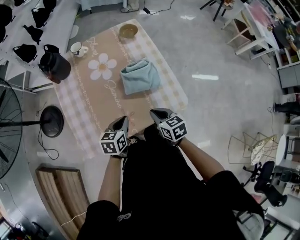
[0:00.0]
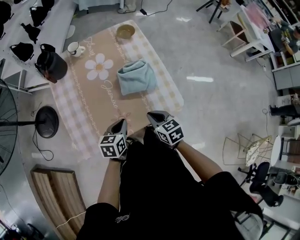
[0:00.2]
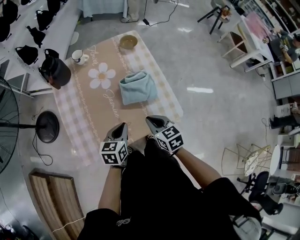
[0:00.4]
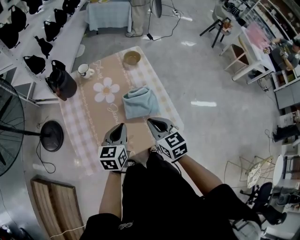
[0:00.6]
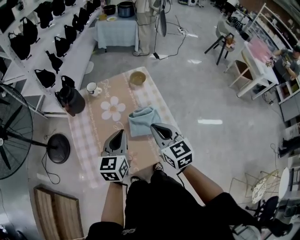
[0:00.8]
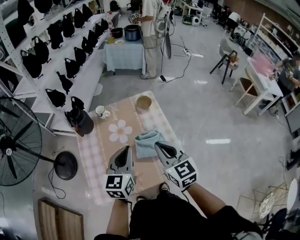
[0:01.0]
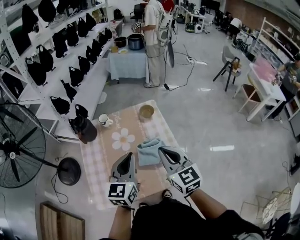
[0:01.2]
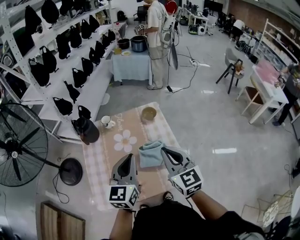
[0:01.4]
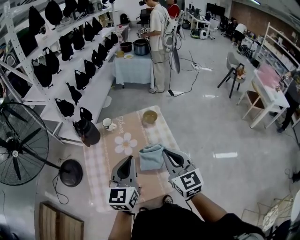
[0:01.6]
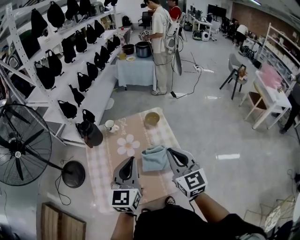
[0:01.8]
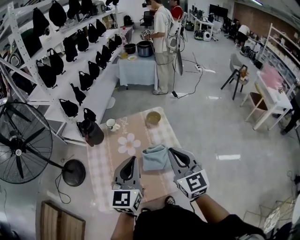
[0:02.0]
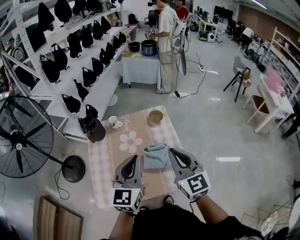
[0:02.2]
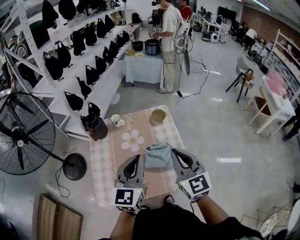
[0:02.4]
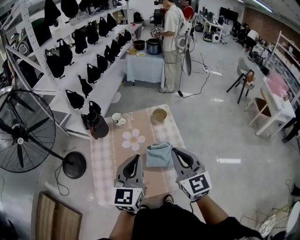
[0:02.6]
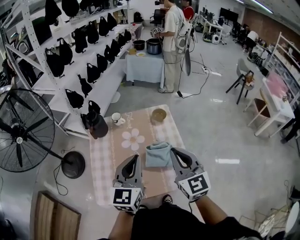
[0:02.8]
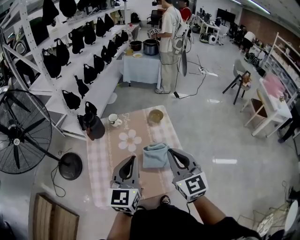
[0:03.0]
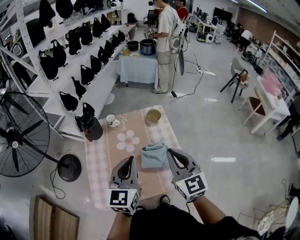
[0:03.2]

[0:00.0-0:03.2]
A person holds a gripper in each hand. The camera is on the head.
0.0 to 1.6 s: The grippers both shift upward by roughly 30 cm. The right gripper angles its fingers upward, by some 30 degrees, while the left gripper tilts its fingers some 30 degrees upward.
1.6 to 3.2 s: The grippers stay close to where they were, moving slightly.

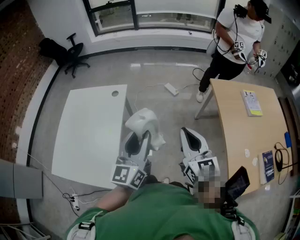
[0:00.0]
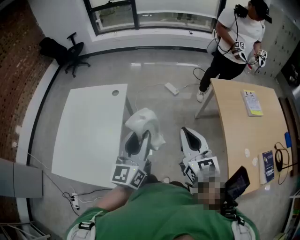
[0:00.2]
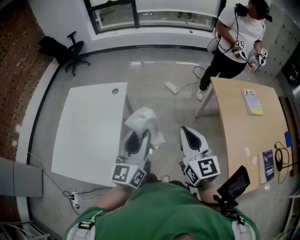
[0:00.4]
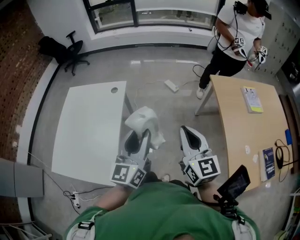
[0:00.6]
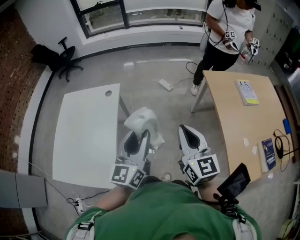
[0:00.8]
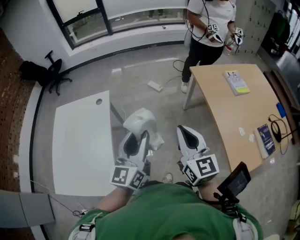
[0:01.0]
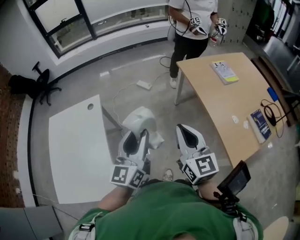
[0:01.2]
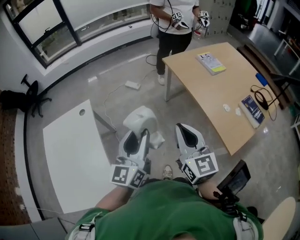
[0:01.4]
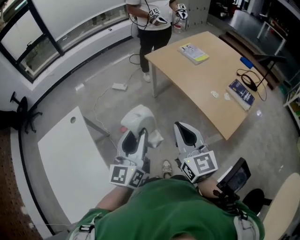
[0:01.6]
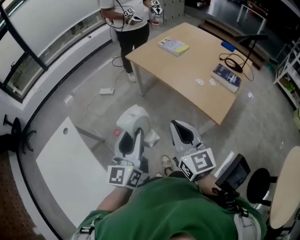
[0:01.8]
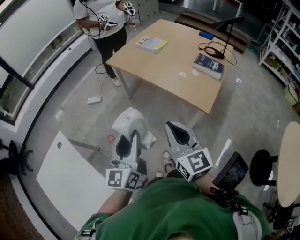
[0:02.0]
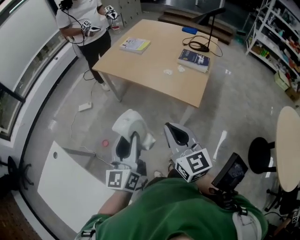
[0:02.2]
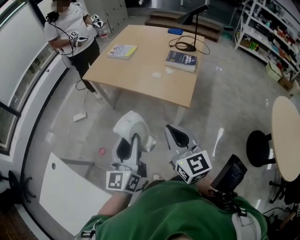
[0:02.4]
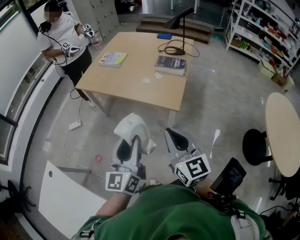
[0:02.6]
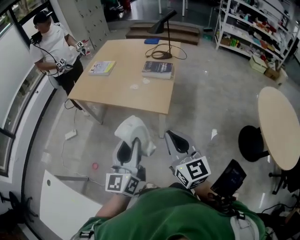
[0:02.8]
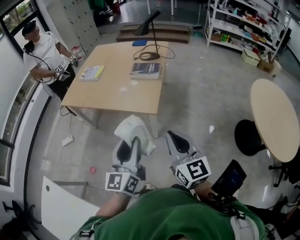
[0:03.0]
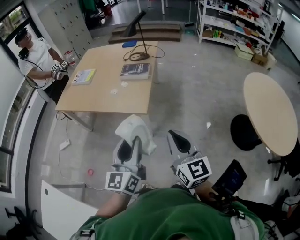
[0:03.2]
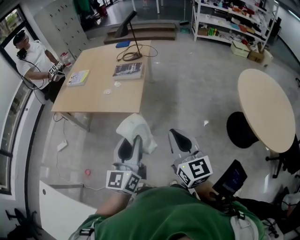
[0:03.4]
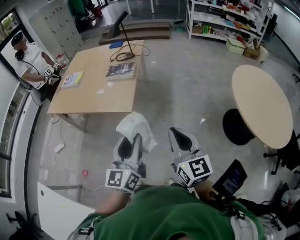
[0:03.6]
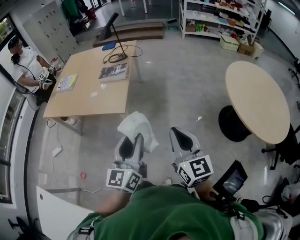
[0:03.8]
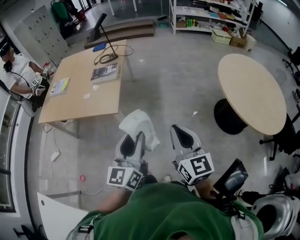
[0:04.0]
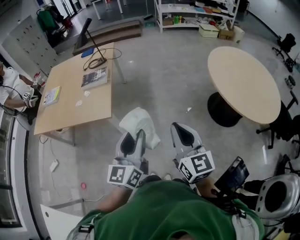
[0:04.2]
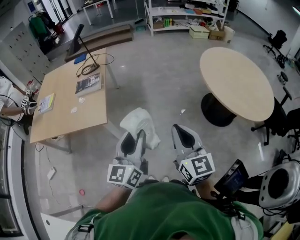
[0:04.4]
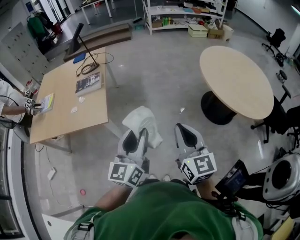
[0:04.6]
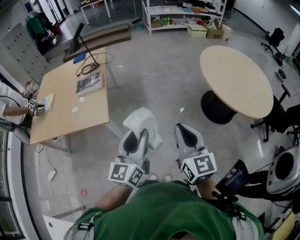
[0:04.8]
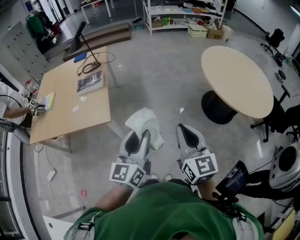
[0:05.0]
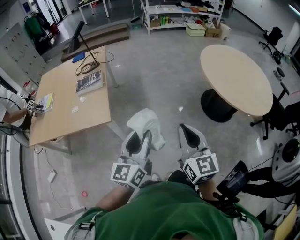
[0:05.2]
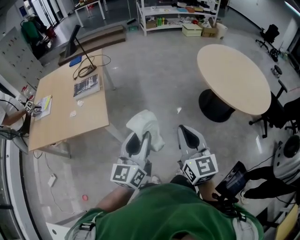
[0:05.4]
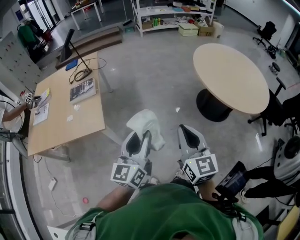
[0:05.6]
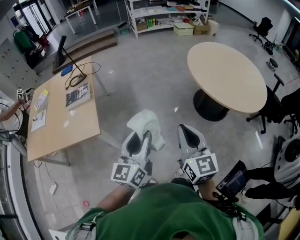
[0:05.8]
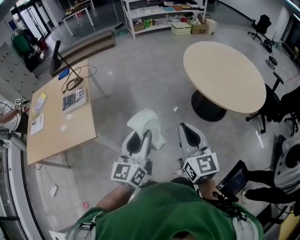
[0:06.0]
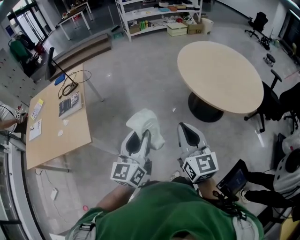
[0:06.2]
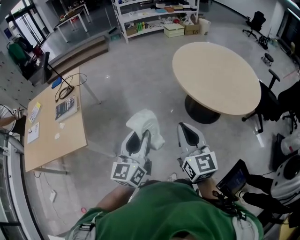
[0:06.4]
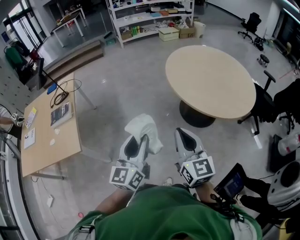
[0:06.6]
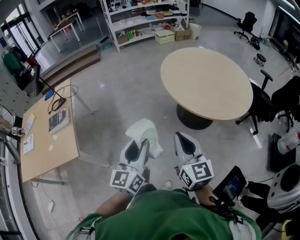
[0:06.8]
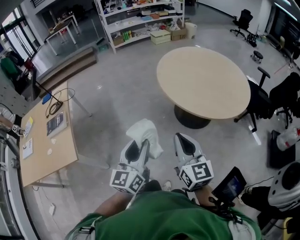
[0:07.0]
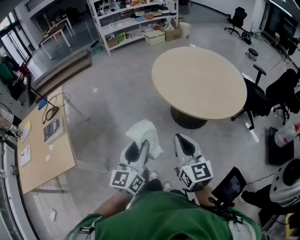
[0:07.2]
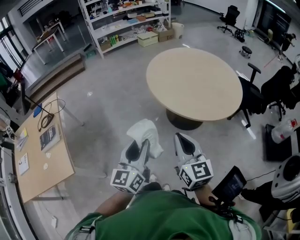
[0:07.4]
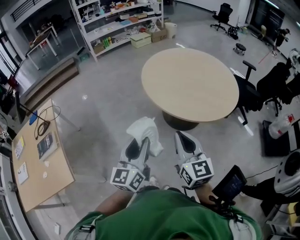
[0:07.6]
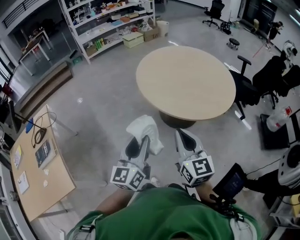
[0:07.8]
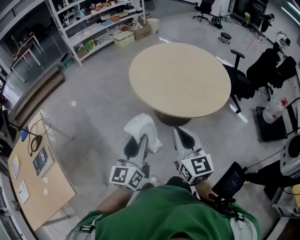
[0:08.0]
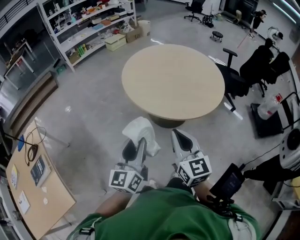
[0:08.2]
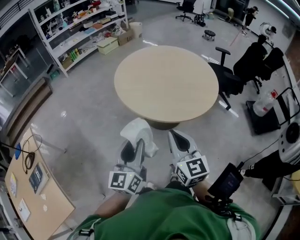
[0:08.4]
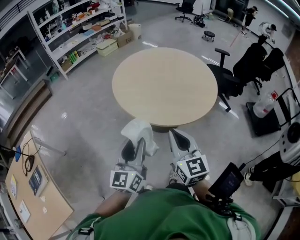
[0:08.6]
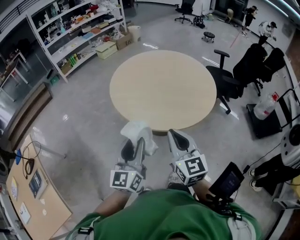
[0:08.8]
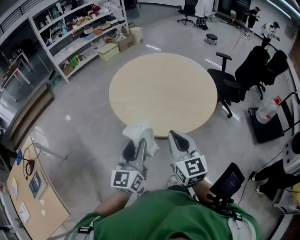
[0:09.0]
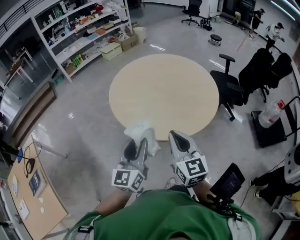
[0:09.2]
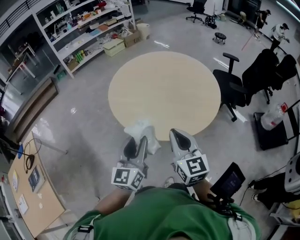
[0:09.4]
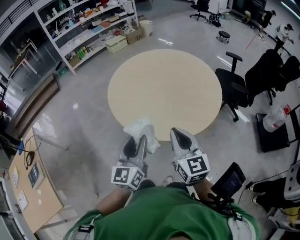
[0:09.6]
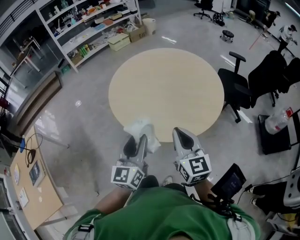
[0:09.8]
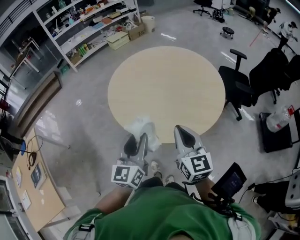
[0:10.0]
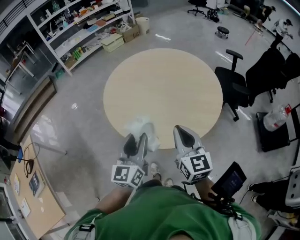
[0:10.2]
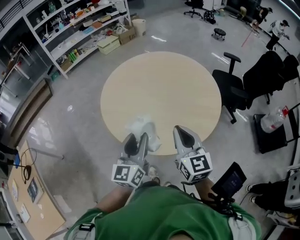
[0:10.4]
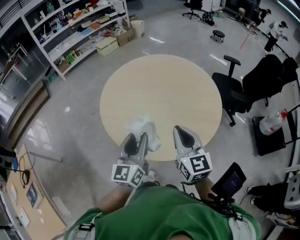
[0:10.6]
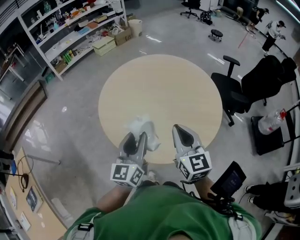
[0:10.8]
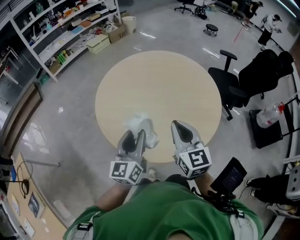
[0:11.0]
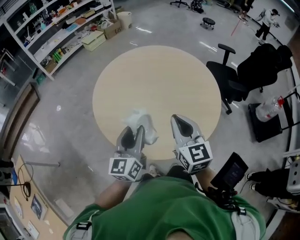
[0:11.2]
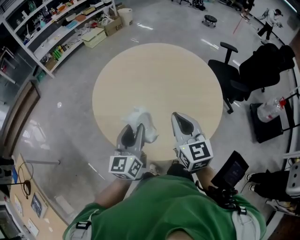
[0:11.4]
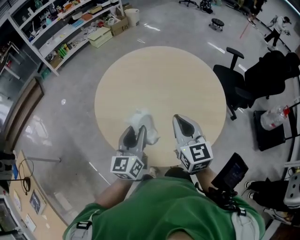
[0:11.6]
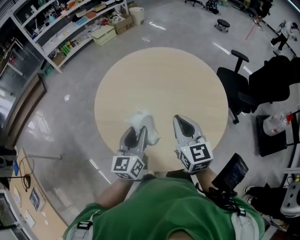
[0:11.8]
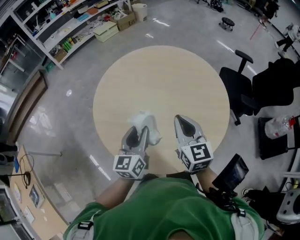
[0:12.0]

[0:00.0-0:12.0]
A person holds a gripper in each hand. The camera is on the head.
0.0 to 1.6 s: The right gripper changes place by about 15 cm, and changes its angle by approximately 30 degrees. The left gripper moves some 10 cm, and changes its angle by some 30 degrees.
1.6 to 3.0 s: The right gripper ends up about 35 cm from where it was, and changes its angle by about 40 degrees. Meanwhile the left gripper changes place by roughly 35 cm, and changes its angle by about 40 degrees.
3.0 to 4.4 s: The right gripper ends up roughly 30 cm from where it was, and rotates about 30 degrees, while the left gripper shifts by some 30 cm, and rotates approximately 30 degrees.
4.4 to 6.0 s: The right gripper travels to the right by approximately 10 cm. The left gripper travels to the right and forward by some 10 cm.
6.0 to 7.6 s: The grippers both shift to the right and forward by about 20 cm.
7.6 to 9.0 s: Both grippers travel together forward and to the right, about 20 cm.
9.0 to 10.4 s: The grippers both shift forward and to the right by roughly 20 cm.
10.4 to 12.0 s: The right gripper shifts roughly 20 cm forward, while the left gripper heads forward and downward, covering roughly 20 cm.

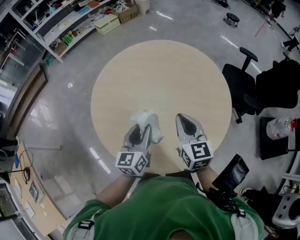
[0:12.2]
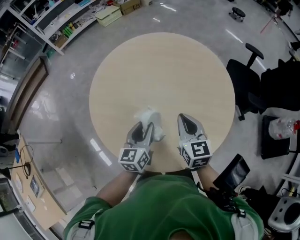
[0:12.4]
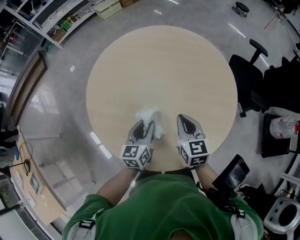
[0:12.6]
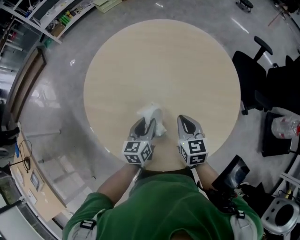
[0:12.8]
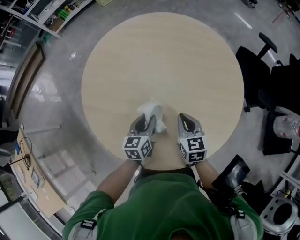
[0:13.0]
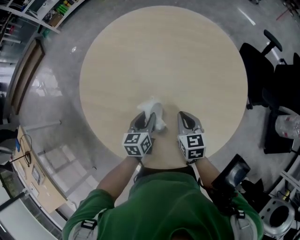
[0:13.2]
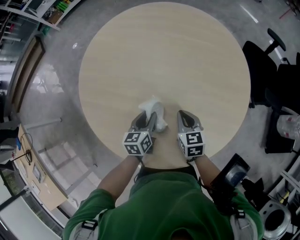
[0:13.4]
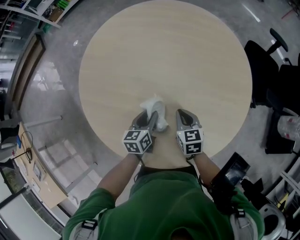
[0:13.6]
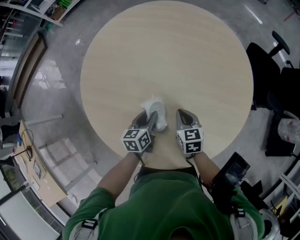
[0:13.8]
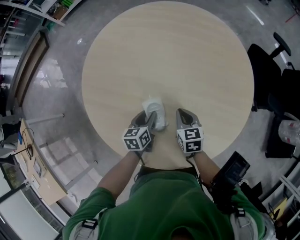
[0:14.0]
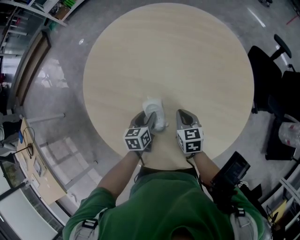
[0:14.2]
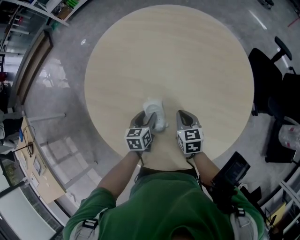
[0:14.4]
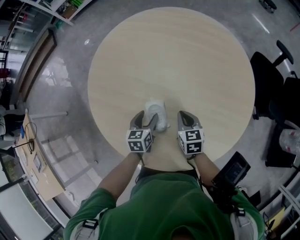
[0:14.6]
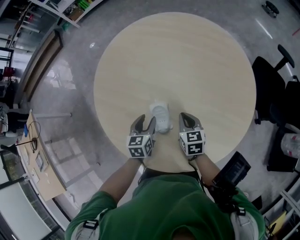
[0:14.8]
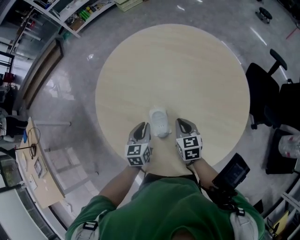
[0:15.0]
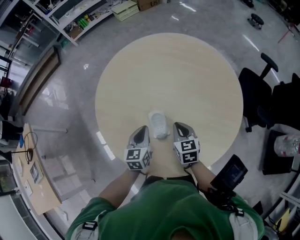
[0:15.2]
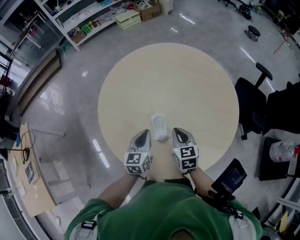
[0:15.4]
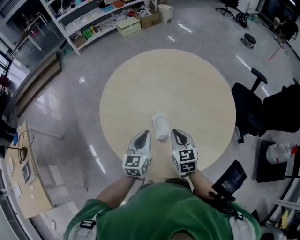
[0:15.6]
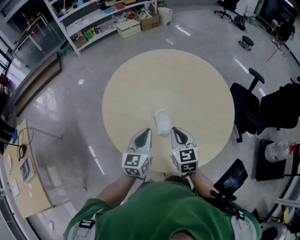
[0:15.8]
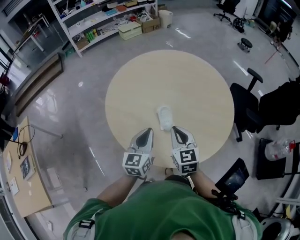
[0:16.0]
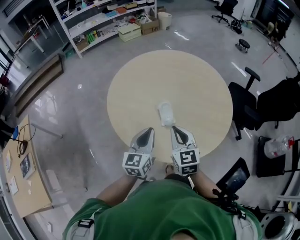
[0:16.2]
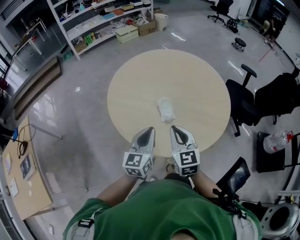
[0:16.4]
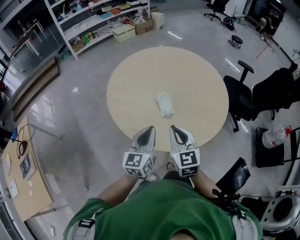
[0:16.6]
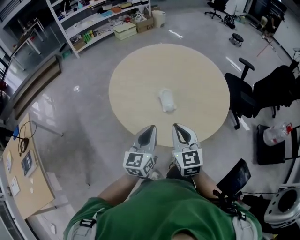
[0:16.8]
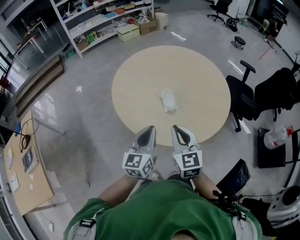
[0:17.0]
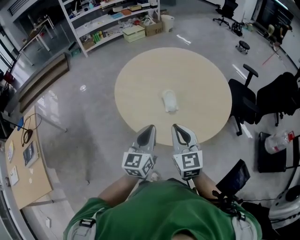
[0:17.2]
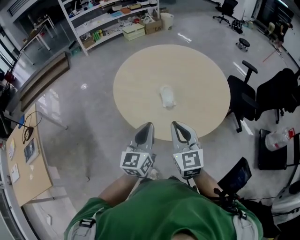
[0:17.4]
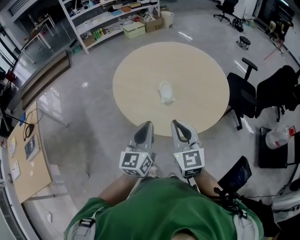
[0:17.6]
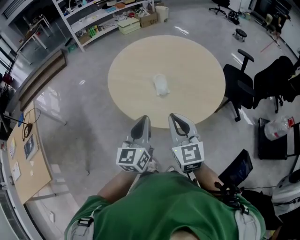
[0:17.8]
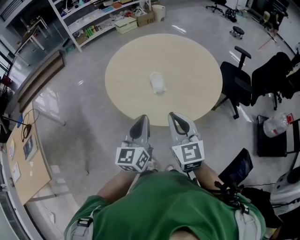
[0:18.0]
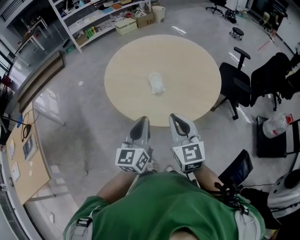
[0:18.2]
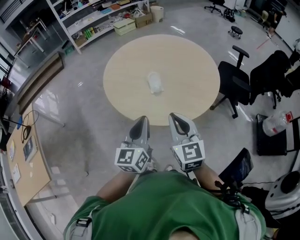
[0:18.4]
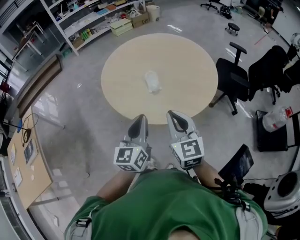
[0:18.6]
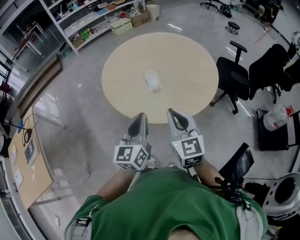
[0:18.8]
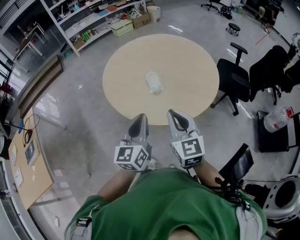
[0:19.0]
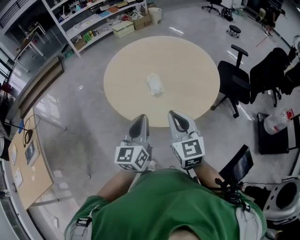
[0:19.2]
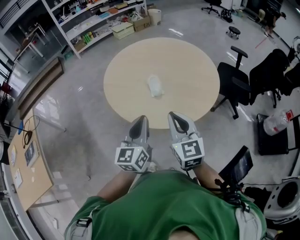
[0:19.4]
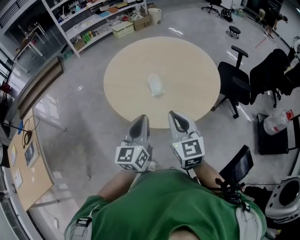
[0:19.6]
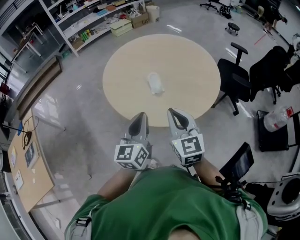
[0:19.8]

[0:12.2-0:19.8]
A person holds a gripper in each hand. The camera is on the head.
12.2 to 13.8 s: The grippers both shift downward by some 25 cm. The right gripper rotates roughly 30 degrees. The left gripper changes its angle by some 30 degrees.
13.8 to 15.2 s: The two grippers go roughly 10 cm upward. The left gripper rotates approximately 20 degrees, and closes.
15.2 to 16.8 s: The grippers both shift backward and upward by some 30 cm. The left gripper changes its angle by roughly 30 degrees; the right gripper turns by roughly 20 degrees.
16.8 to 18.2 s: The right gripper goes some 10 cm backward and to the right; the left gripper heads backward, covering about 10 cm.
18.2 to 19.8 s: The grippers stay close to where they were, moving slightly.

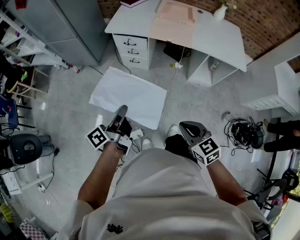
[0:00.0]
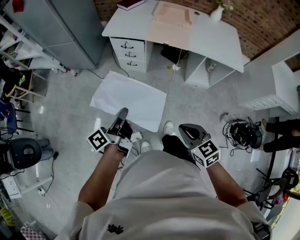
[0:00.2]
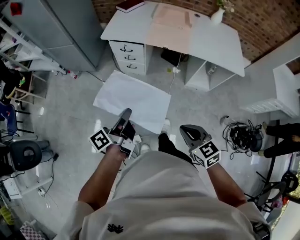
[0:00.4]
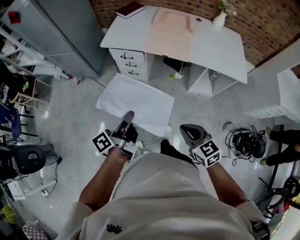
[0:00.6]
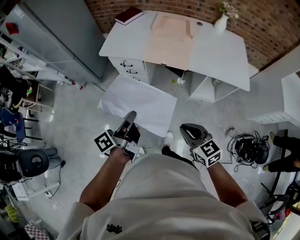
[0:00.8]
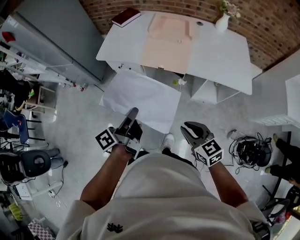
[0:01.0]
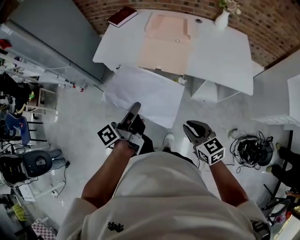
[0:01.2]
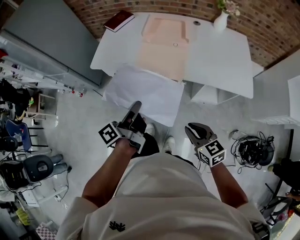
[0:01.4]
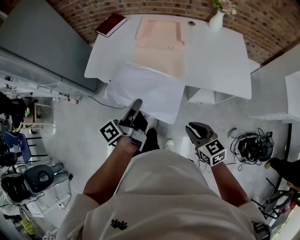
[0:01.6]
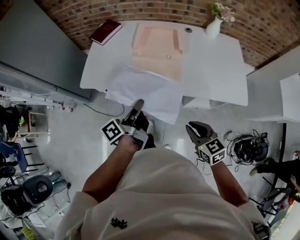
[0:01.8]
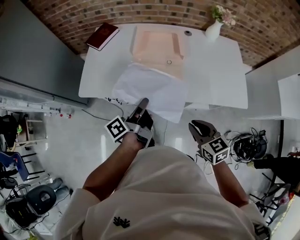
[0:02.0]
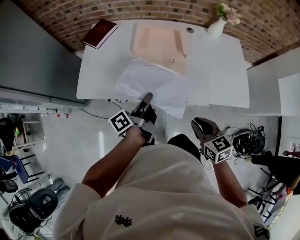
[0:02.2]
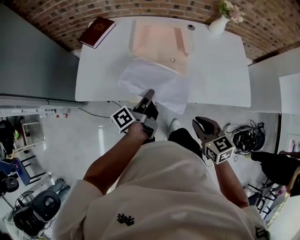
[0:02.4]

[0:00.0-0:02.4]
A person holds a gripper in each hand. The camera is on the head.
0.0 to 1.2 s: The right gripper ends up some 30 cm from where it was.
1.2 to 2.4 s: The right gripper shifts by approximately 25 cm.
